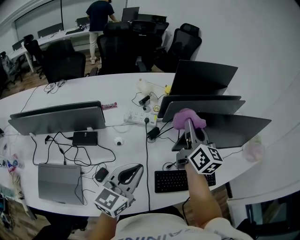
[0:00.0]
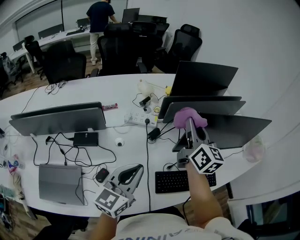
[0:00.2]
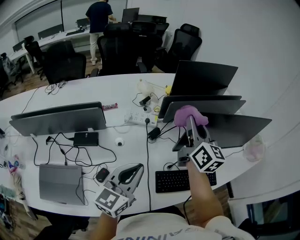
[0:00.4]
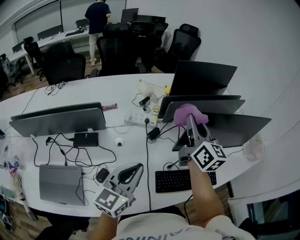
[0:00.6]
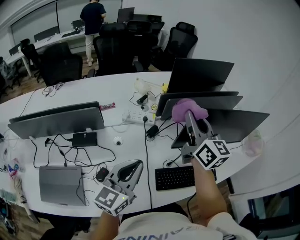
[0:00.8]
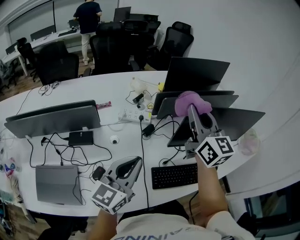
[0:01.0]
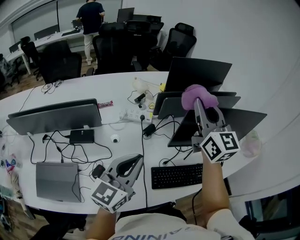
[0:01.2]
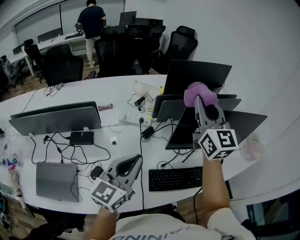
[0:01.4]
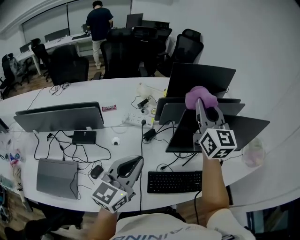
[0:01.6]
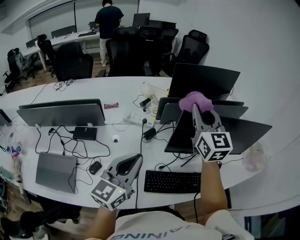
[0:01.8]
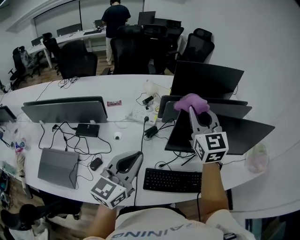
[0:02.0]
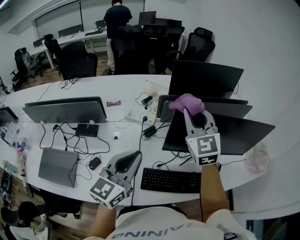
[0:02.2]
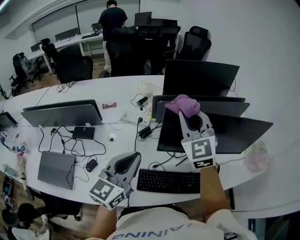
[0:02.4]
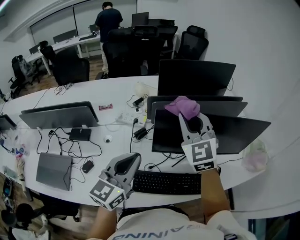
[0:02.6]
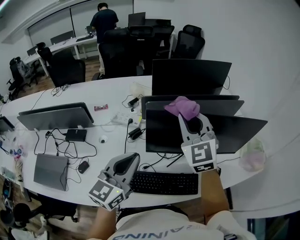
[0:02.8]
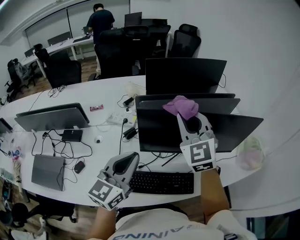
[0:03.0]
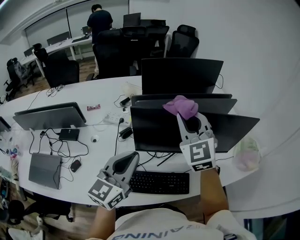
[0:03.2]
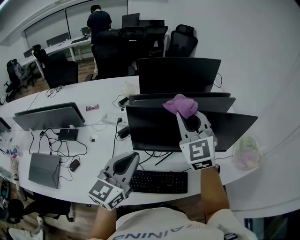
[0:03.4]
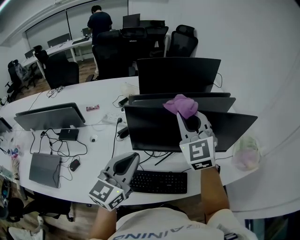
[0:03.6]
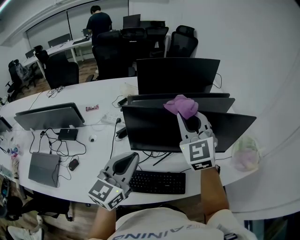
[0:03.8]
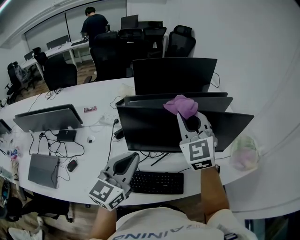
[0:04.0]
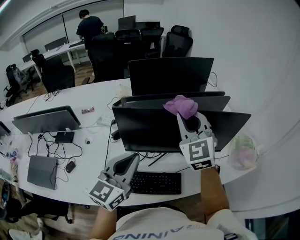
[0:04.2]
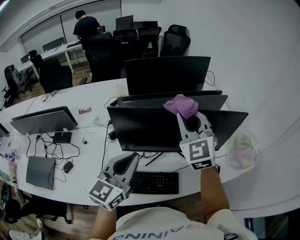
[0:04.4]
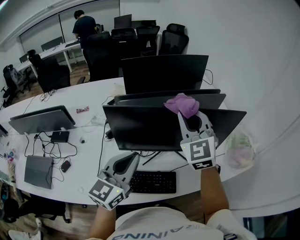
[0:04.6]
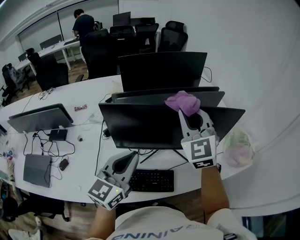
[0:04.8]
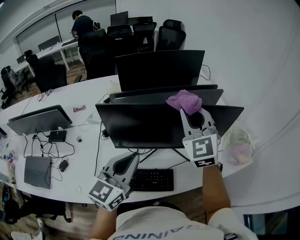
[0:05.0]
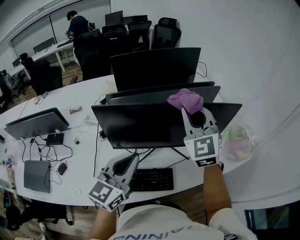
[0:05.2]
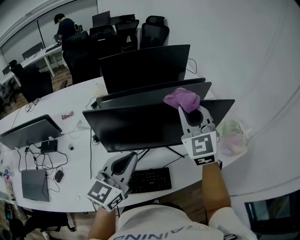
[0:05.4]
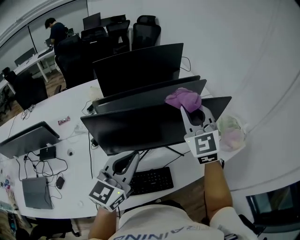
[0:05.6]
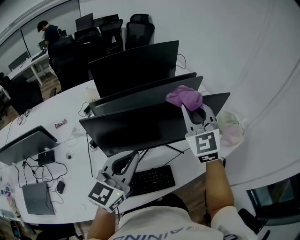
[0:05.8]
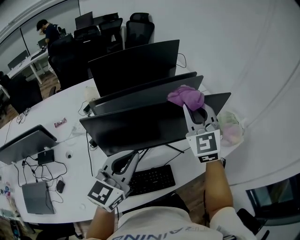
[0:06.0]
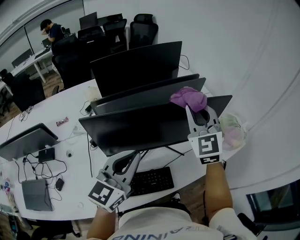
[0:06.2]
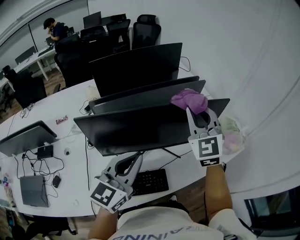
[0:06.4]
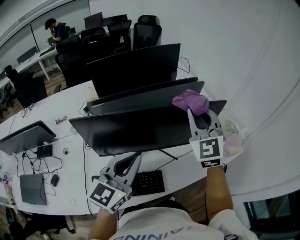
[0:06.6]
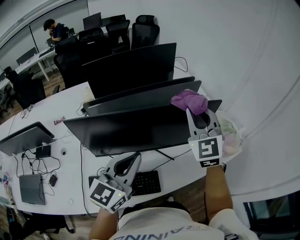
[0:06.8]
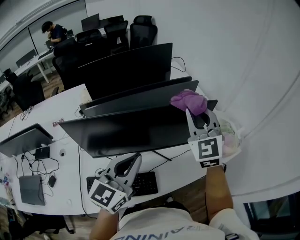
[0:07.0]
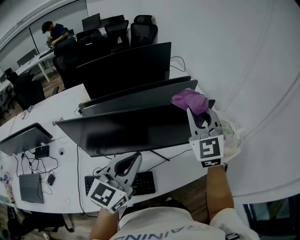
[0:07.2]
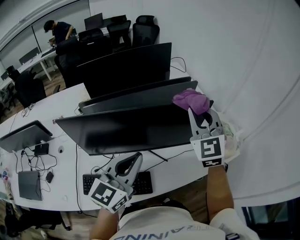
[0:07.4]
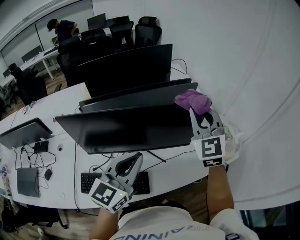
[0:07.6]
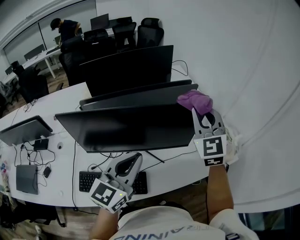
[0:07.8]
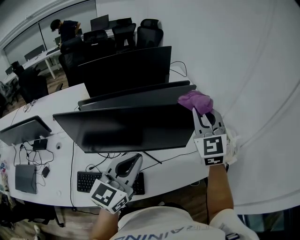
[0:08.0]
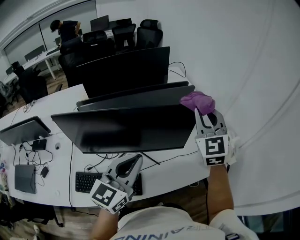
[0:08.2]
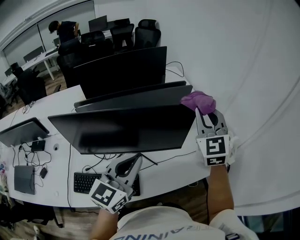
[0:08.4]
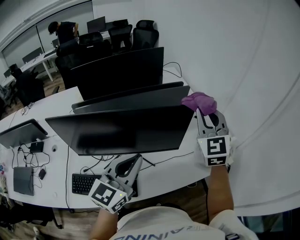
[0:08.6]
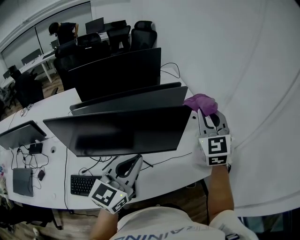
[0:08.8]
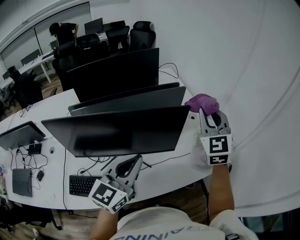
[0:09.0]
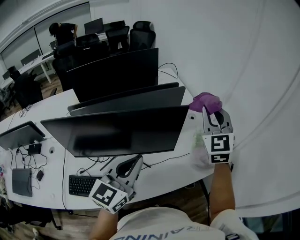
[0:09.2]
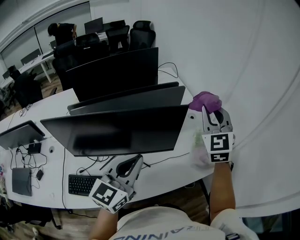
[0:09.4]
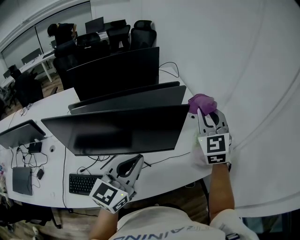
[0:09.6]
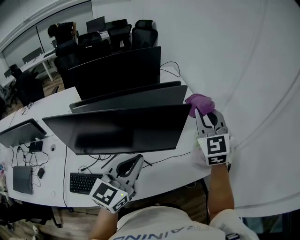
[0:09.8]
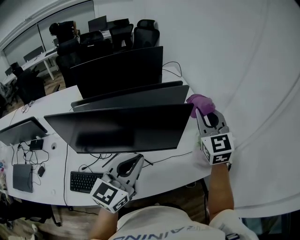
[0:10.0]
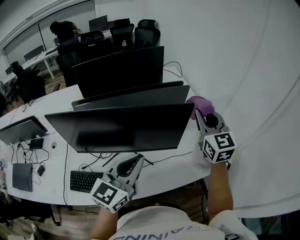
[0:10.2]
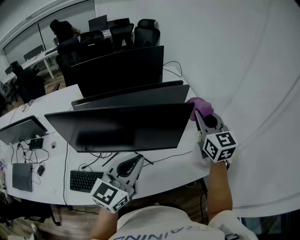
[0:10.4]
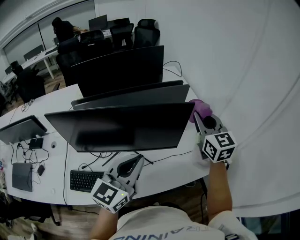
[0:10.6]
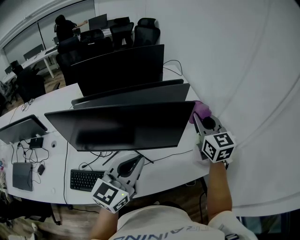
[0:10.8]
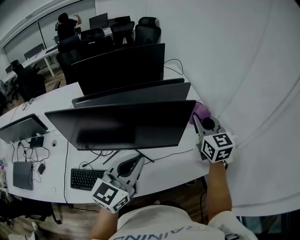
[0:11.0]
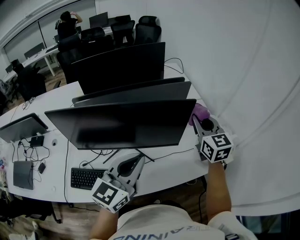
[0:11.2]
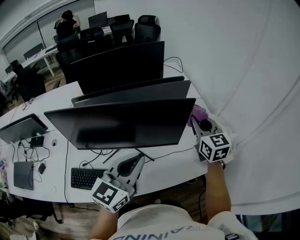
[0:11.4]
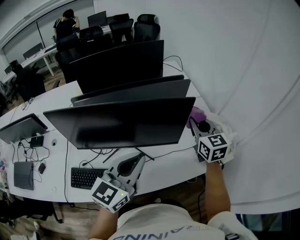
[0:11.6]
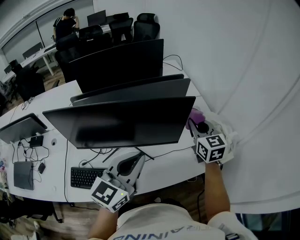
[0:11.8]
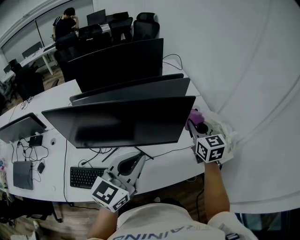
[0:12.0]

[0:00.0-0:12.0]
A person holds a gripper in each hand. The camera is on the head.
0:00.0 to 0:01.6: The left gripper moves roughly 5 cm. Meanwhile the right gripper goes approximately 10 cm upward, and changes its angle by some 30 degrees.
0:01.6 to 0:03.0: The right gripper heads to the right, covering roughly 10 cm, and turns by about 30 degrees. Meanwhile the left gripper is displaced to the right by about 15 cm.
0:03.0 to 0:04.4: Both grippers travel together to the right, approximately 10 cm.
0:04.4 to 0:06.0: The left gripper moves some 5 cm. Meanwhile the right gripper moves to the right, about 10 cm.
0:06.0 to 0:07.6: Both grippers travel together to the right, some 15 cm.
0:07.6 to 0:09.0: The right gripper is displaced to the right by about 10 cm, while the left gripper moves to the right, approximately 10 cm.
0:09.0 to 0:10.4: The right gripper rotates approximately 30 degrees.
0:10.4 to 0:12.0: The right gripper is displaced downward by approximately 10 cm.

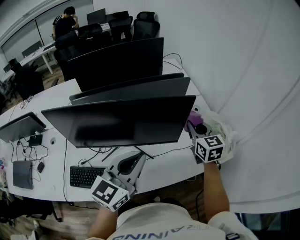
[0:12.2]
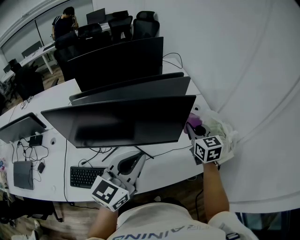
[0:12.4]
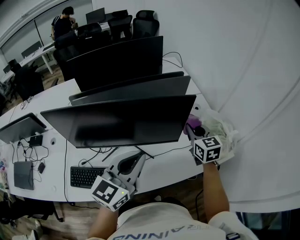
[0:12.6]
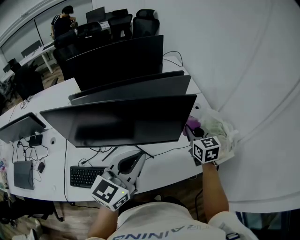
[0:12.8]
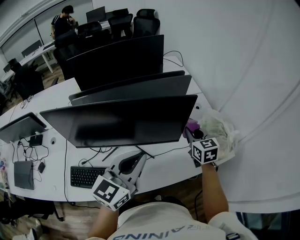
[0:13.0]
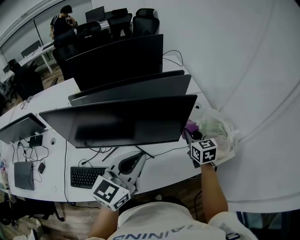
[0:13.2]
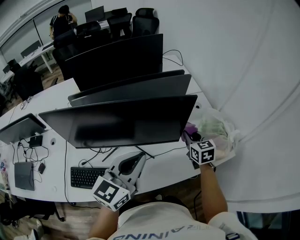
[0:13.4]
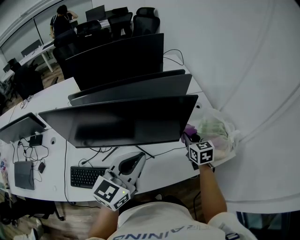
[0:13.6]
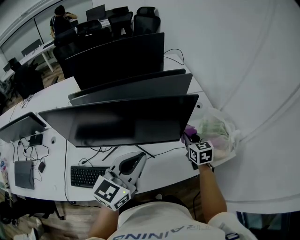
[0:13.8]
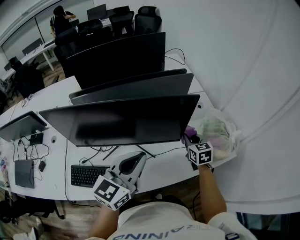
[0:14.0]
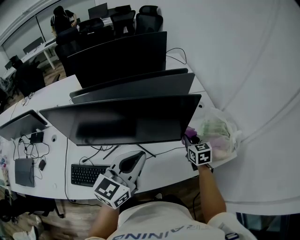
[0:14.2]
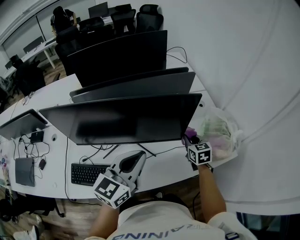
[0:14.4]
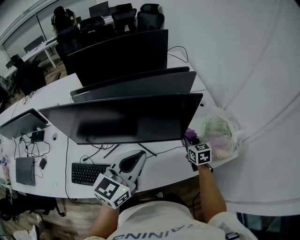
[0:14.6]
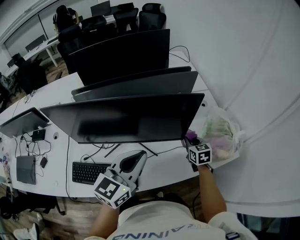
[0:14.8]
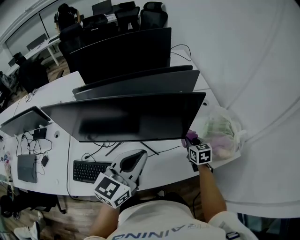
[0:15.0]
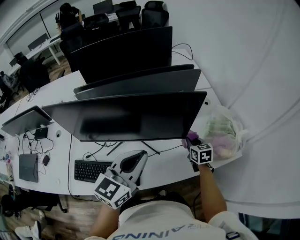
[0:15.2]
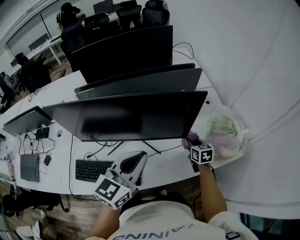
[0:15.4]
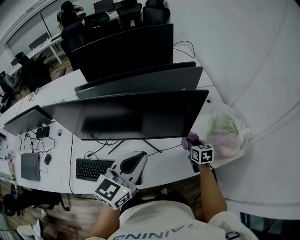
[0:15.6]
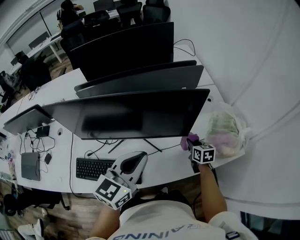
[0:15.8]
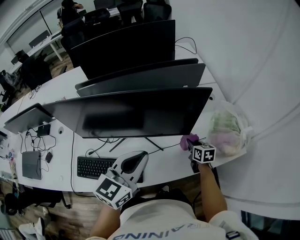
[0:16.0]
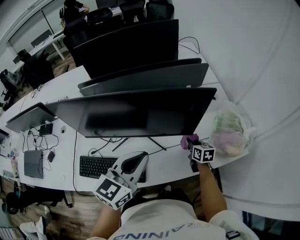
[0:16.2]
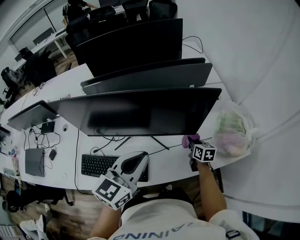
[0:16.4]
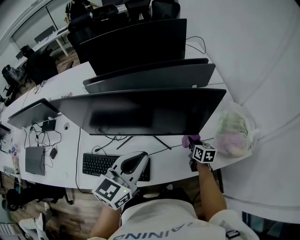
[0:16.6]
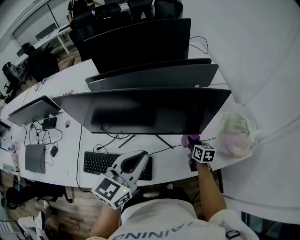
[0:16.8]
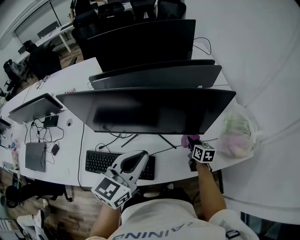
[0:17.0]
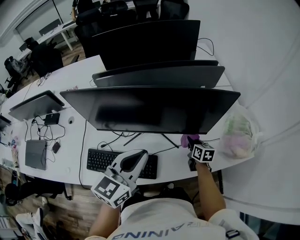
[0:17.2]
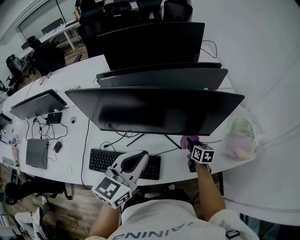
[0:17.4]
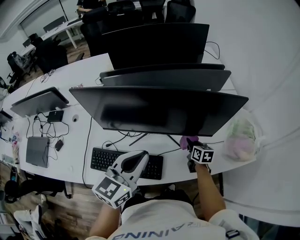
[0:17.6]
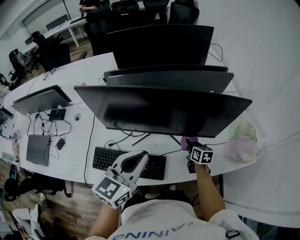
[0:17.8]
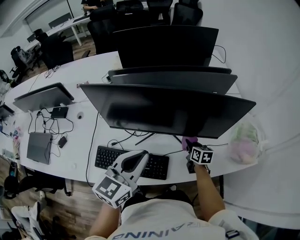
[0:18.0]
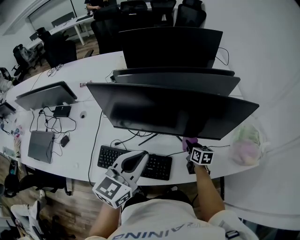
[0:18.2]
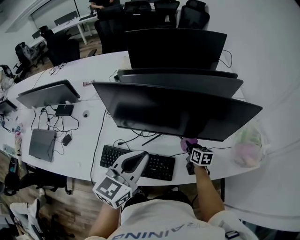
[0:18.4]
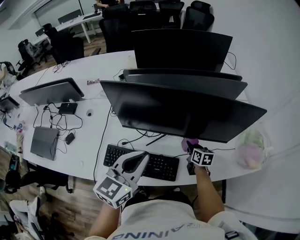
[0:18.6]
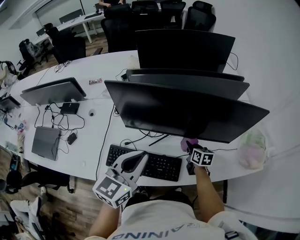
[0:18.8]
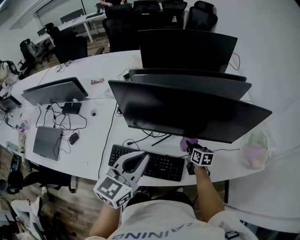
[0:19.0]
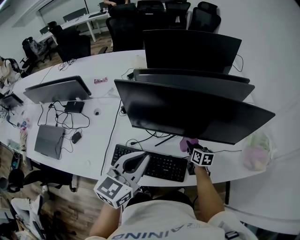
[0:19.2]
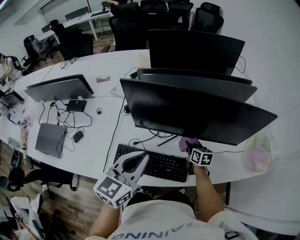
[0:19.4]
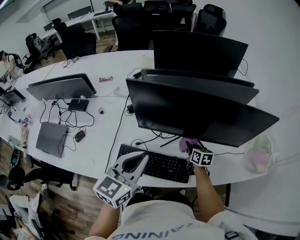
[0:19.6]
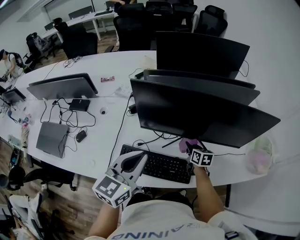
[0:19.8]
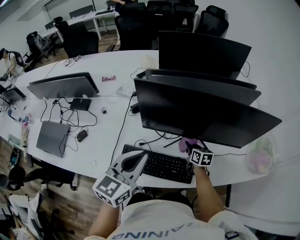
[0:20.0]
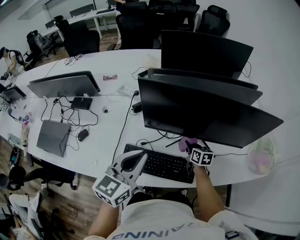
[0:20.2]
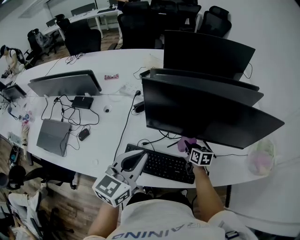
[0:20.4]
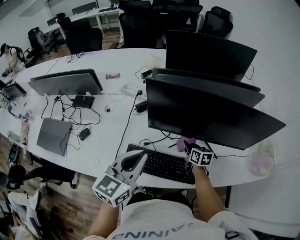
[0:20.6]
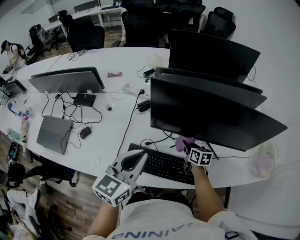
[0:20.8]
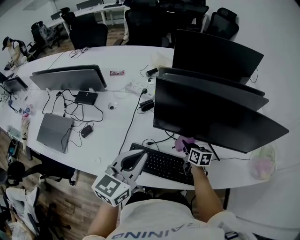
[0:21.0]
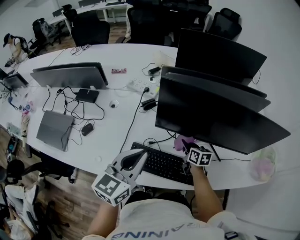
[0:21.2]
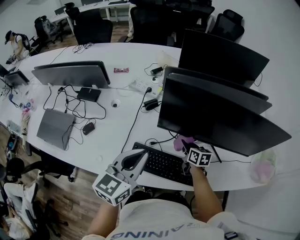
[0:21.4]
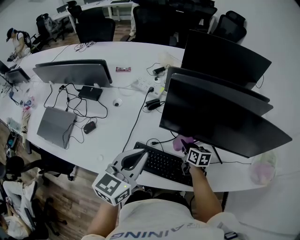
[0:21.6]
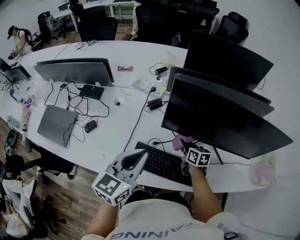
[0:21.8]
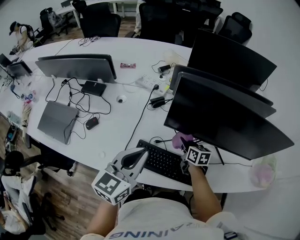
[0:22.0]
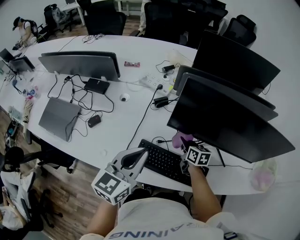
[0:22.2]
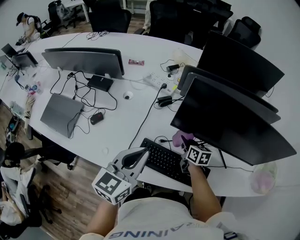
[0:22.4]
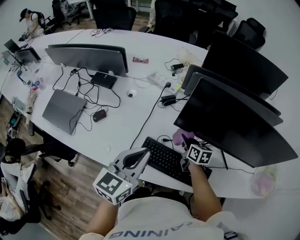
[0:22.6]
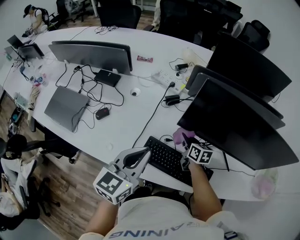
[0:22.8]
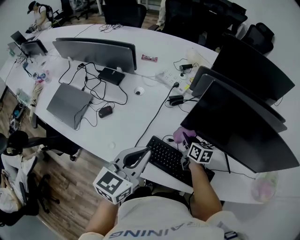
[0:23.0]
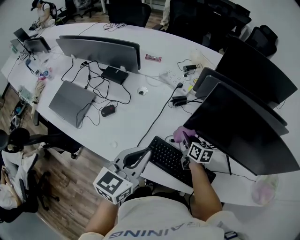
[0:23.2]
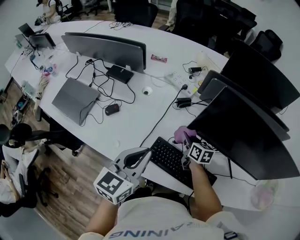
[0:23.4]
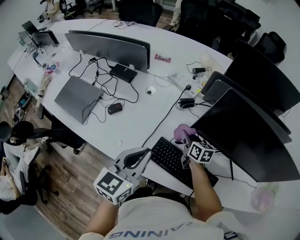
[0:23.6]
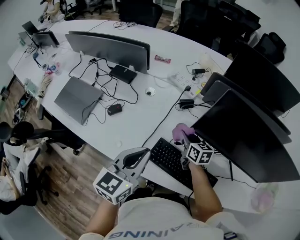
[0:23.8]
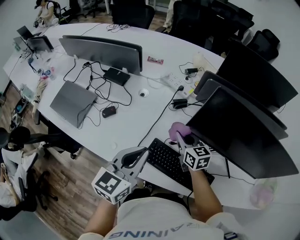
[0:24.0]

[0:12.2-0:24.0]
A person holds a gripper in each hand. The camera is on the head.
0:12.2 to 0:13.6: The right gripper goes about 10 cm downward.
0:13.6 to 0:15.2: The right gripper goes about 10 cm downward.
0:15.2 to 0:16.6: The right gripper ends up about 5 cm from where it was.
0:16.6 to 0:18.2: The two grippers go approximately 15 cm to the left.
0:18.2 to 0:19.6: The two grippers go approximately 10 cm to the left.
0:19.6 to 0:21.0: Both grippers travel together to the left, some 10 cm.
0:21.0 to 0:22.6: The right gripper goes roughly 10 cm to the left. Meanwhile the left gripper is displaced to the left by some 5 cm.
0:22.6 to 0:24.0: The right gripper shifts approximately 10 cm to the left and upward, and swivels approximately 20 degrees.
